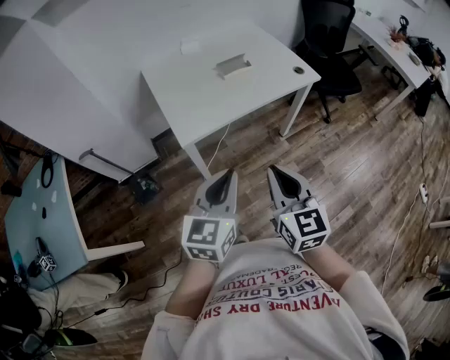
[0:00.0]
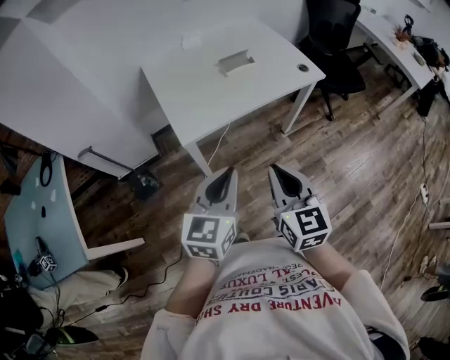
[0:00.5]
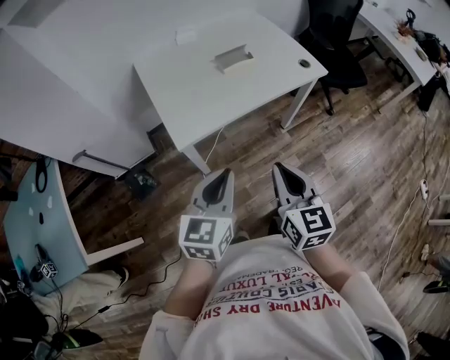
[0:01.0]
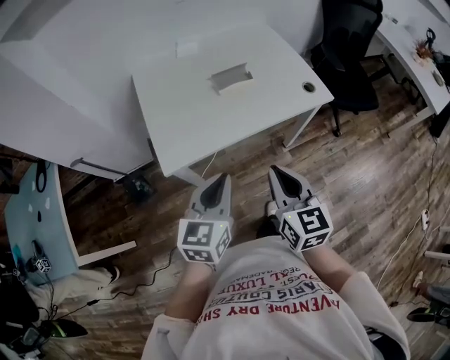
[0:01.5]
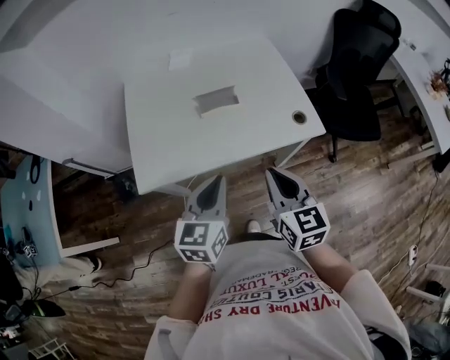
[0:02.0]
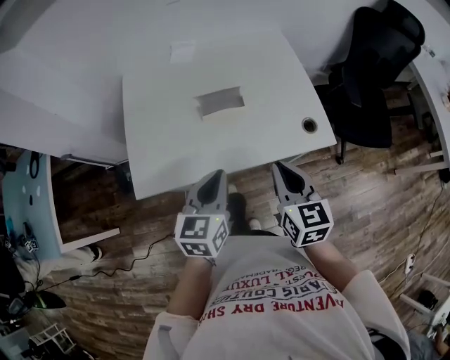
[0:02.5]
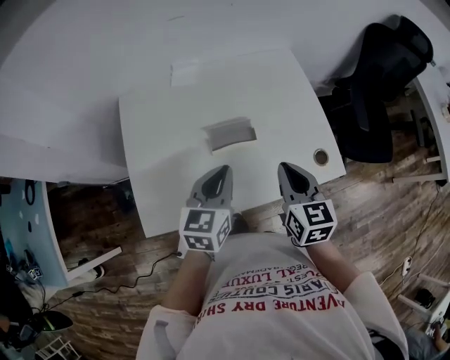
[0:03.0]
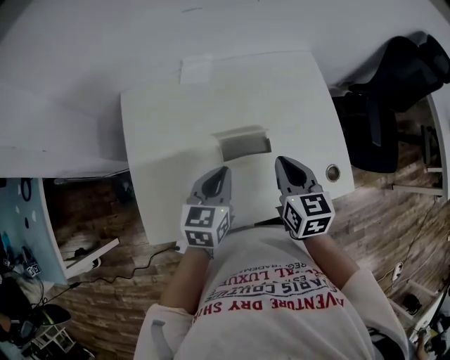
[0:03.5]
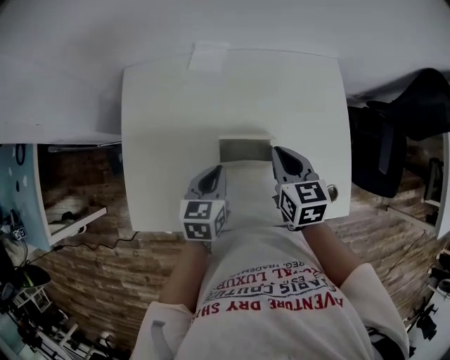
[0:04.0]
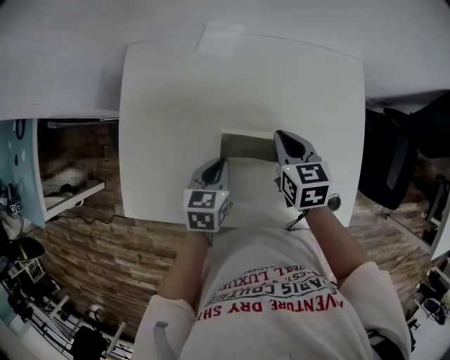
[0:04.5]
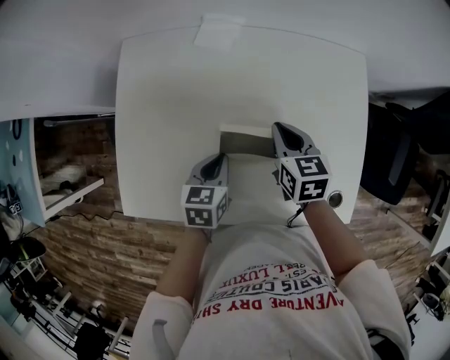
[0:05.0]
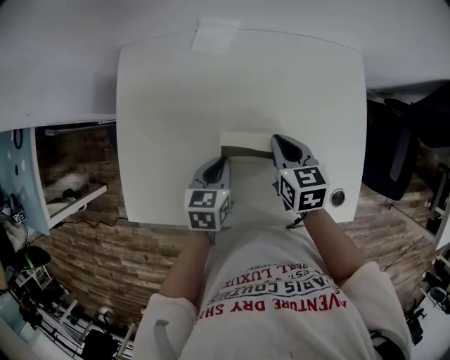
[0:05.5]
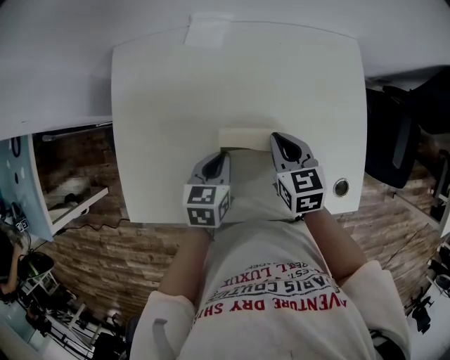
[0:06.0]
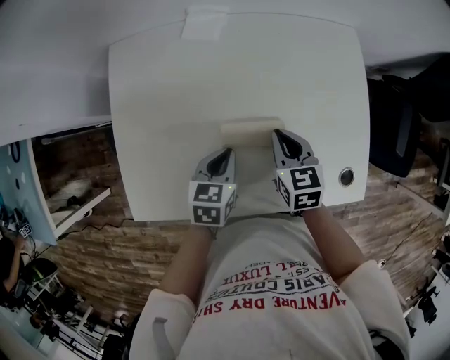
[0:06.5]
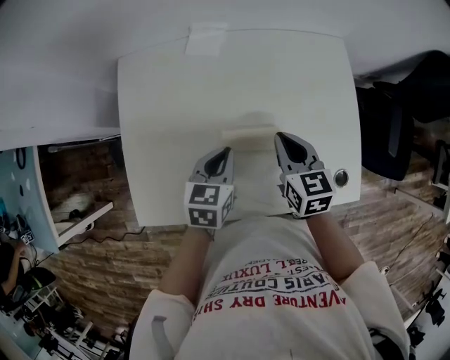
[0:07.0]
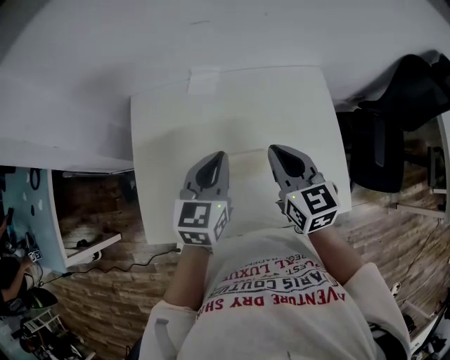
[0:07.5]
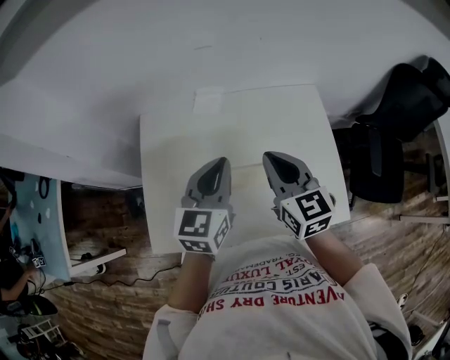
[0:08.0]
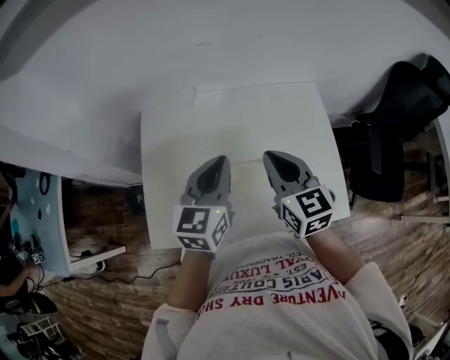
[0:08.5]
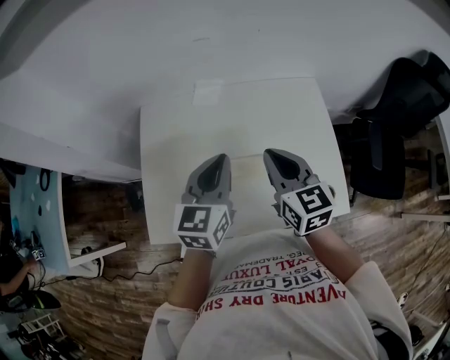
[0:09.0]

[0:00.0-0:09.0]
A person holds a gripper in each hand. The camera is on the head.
0:00.0 to 0:02.0: The two grippers go approximately 35 cm forward and to the right.
0:02.0 to 0:04.5: The right gripper travels forward by roughly 40 cm, and swivels approximately 30 degrees. The left gripper goes about 35 cm forward and downward, and rotates about 30 degrees.
0:04.5 to 0:07.0: The right gripper heads backward, covering roughly 5 cm.
0:07.0 to 0:09.0: The grippers both shift upward by roughly 20 cm. The left gripper changes its angle by approximately 30 degrees.

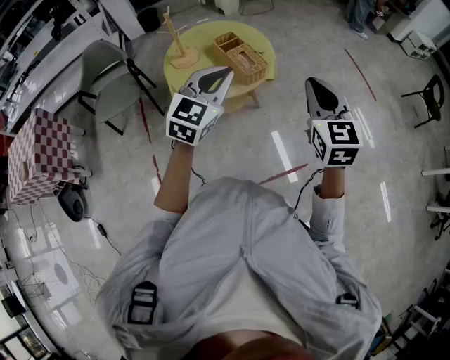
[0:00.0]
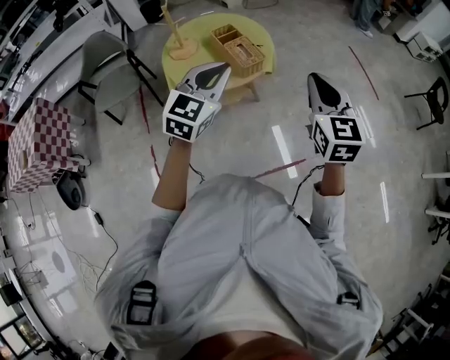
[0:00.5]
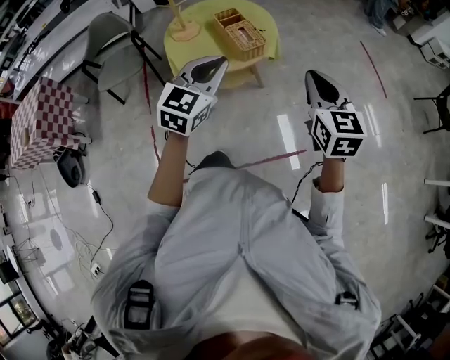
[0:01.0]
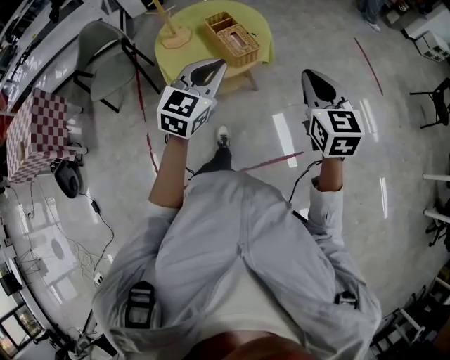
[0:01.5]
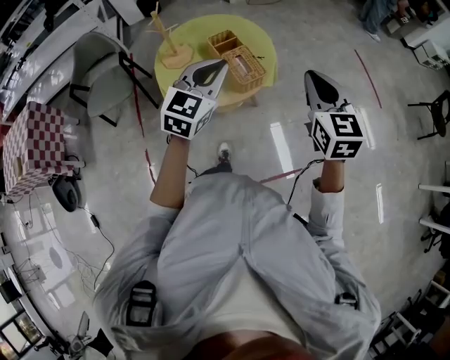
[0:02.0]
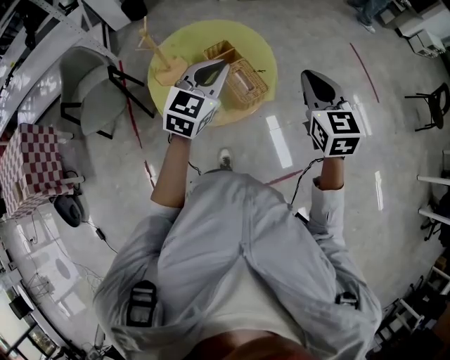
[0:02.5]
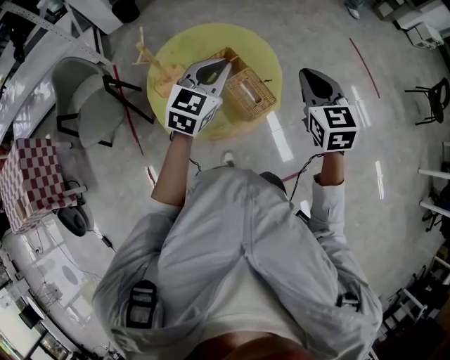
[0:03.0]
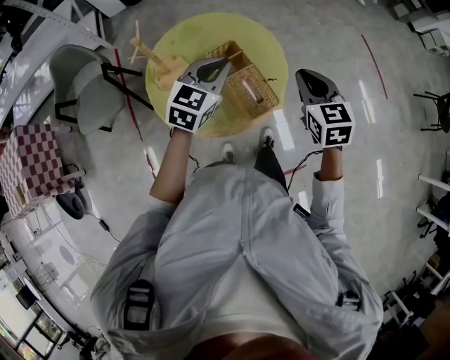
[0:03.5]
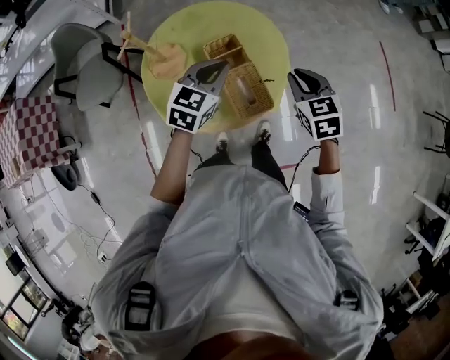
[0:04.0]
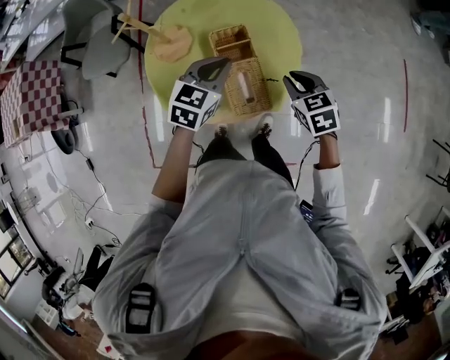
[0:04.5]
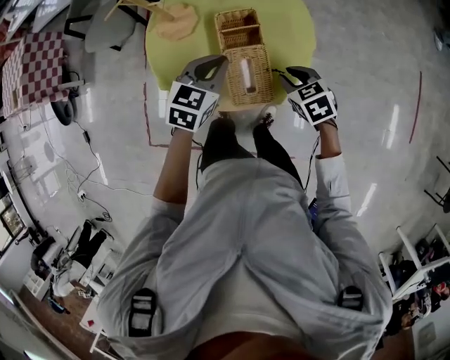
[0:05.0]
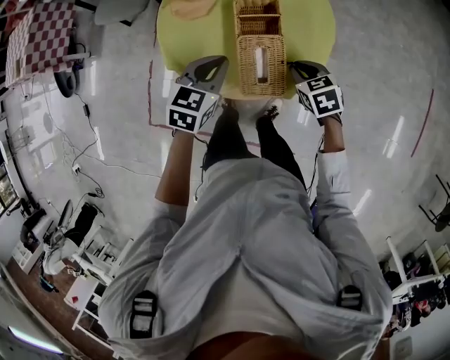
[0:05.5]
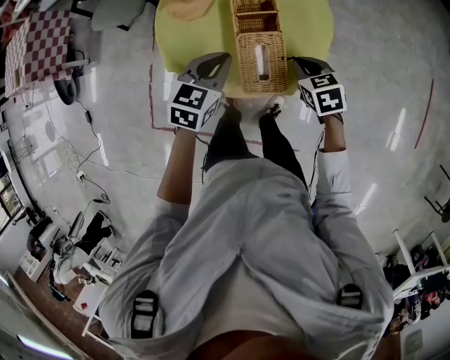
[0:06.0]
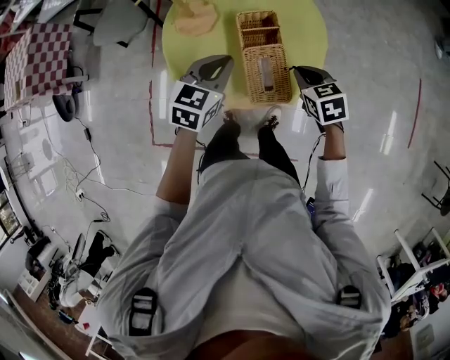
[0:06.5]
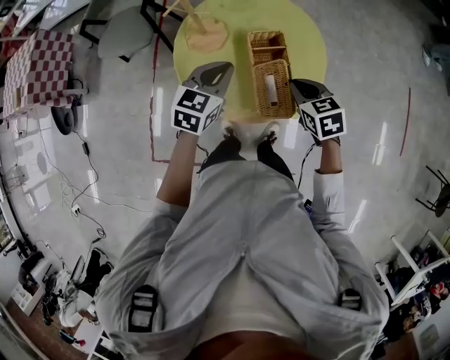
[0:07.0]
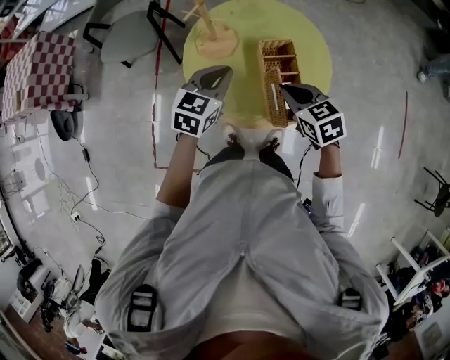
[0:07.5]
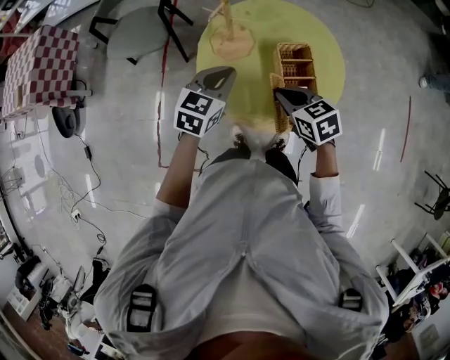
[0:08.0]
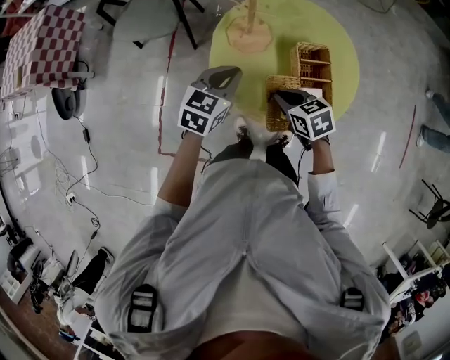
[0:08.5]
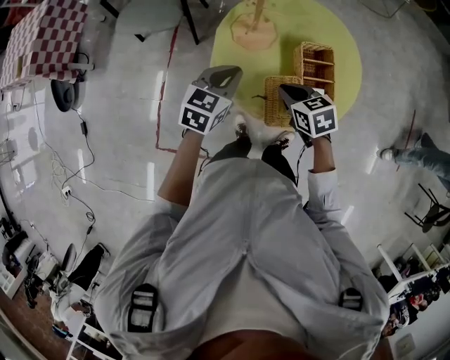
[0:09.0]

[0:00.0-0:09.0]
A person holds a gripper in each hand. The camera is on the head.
0:00.0 to 0:02.0: The grippers both shift forward by about 15 cm.
0:02.0 to 0:04.5: The right gripper moves some 40 cm, and tips its fingers downward by about 30 degrees; the left gripper shifts by roughly 35 cm, and turns by some 30 degrees.
0:04.5 to 0:07.0: The grippers both shift to the left by some 10 cm. The right gripper moves roughly 10 cm downward and comes back.
0:07.0 to 0:09.0: The two grippers go approximately 15 cm to the left.

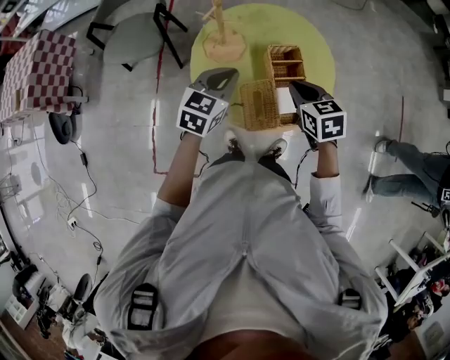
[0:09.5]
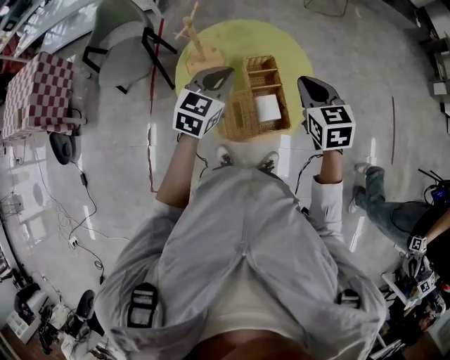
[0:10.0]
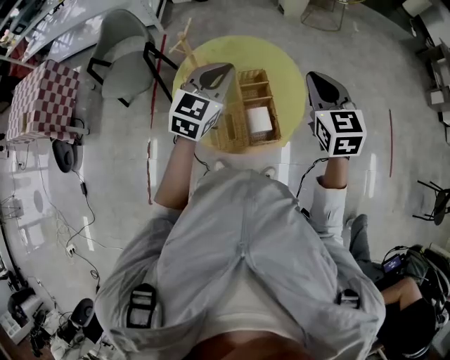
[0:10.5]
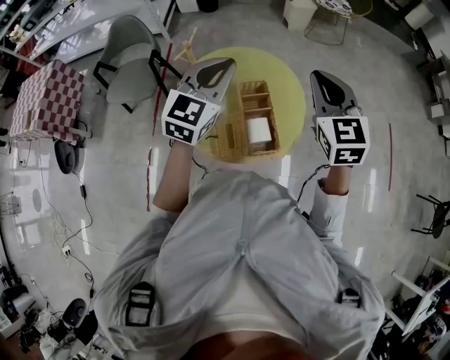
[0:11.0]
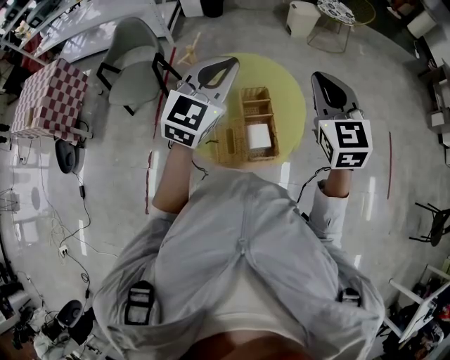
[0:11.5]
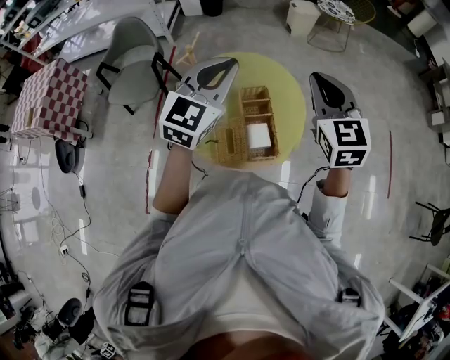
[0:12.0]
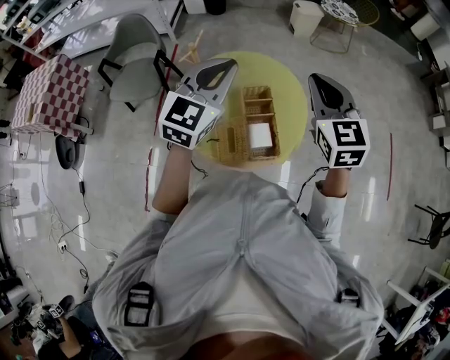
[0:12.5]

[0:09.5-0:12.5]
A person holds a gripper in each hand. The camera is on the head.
0:09.5 to 0:11.0: Both grippers travel together upward and to the right, approximately 25 cm. The left gripper changes its angle by about 30 degrees, while the right gripper swivels approximately 40 degrees.
0:11.0 to 0:12.5: There are only small adjustments of the grippers.

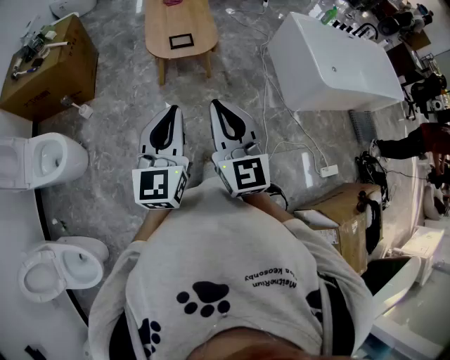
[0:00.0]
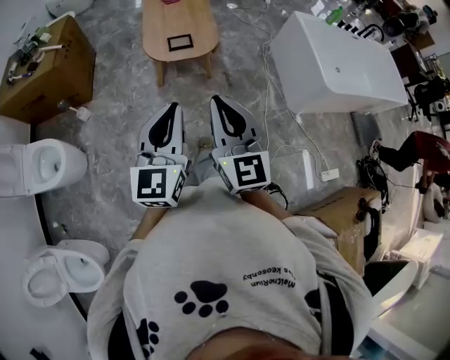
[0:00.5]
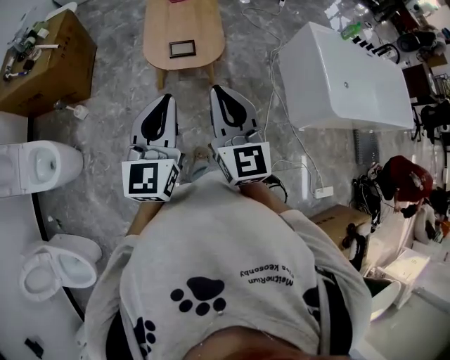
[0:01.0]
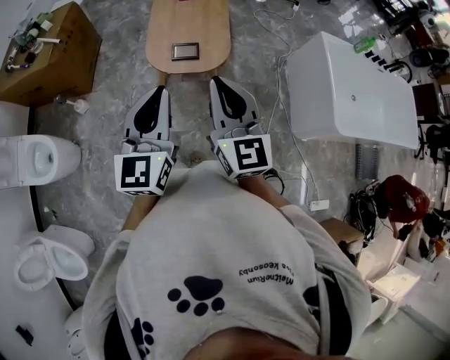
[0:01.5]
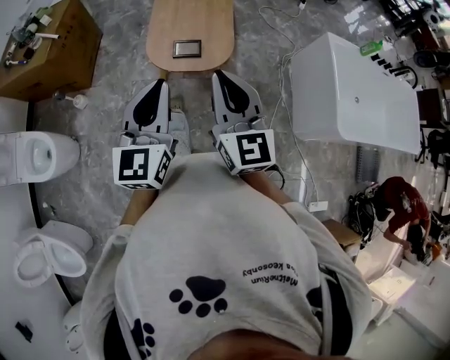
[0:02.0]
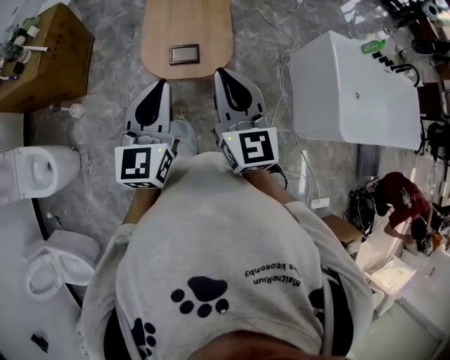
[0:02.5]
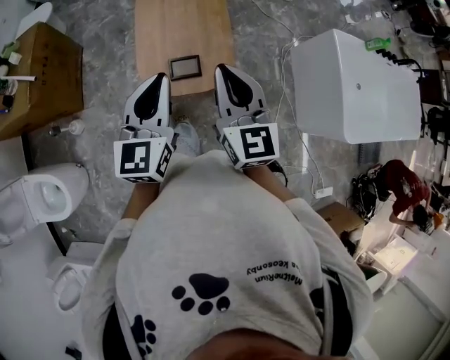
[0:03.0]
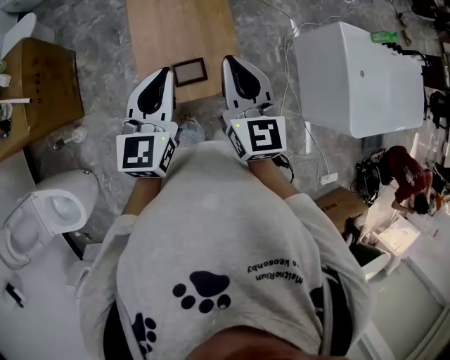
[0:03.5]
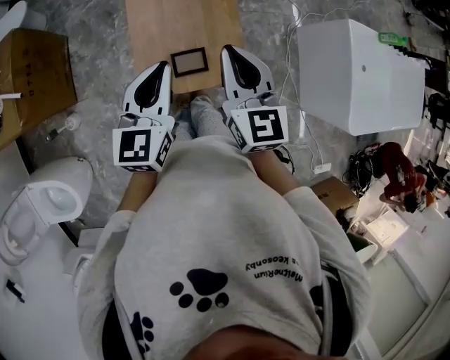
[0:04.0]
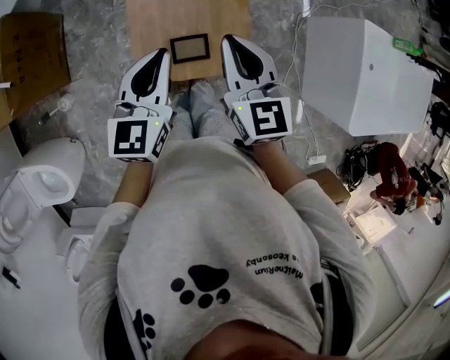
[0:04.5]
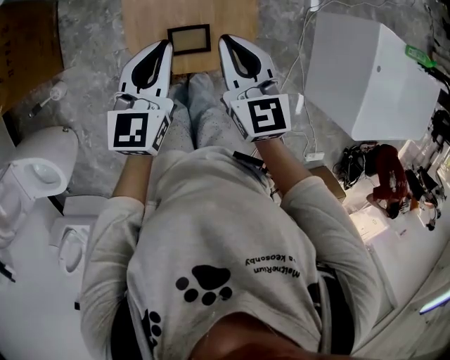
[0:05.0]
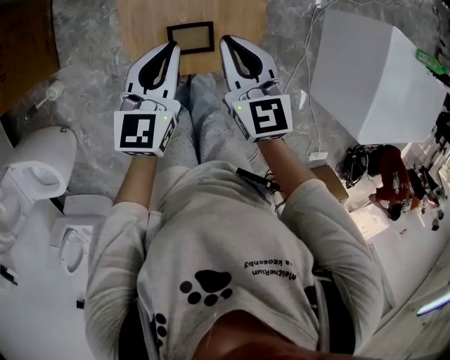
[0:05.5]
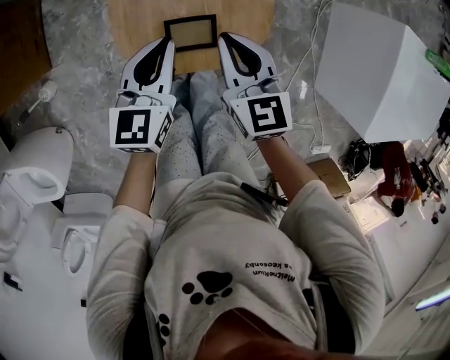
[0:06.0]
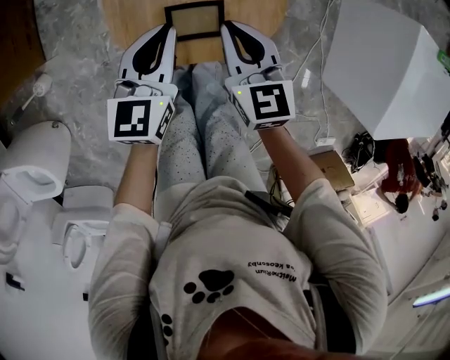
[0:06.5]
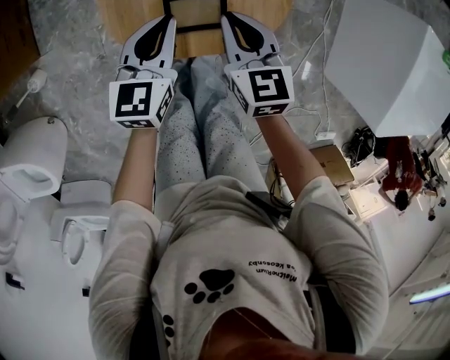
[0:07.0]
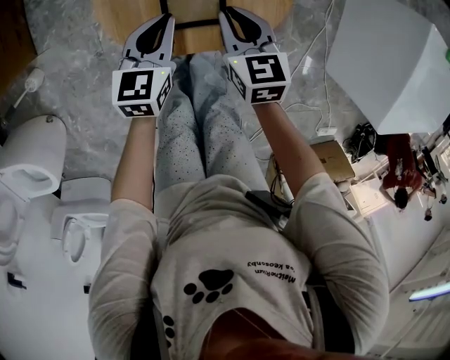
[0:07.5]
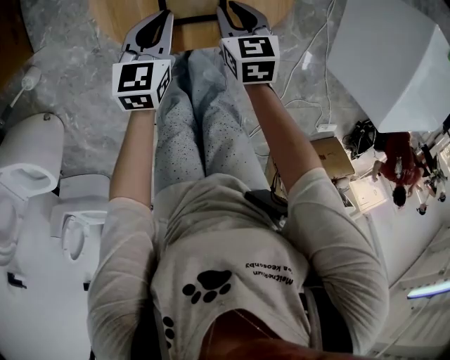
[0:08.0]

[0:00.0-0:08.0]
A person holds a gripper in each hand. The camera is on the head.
0:00.0 to 0:02.0: The grippers both shift forward by about 35 cm.
0:02.0 to 0:04.0: Both grippers travel together forward, some 35 cm. The right gripper changes its angle by about 20 degrees; the left gripper turns by some 20 degrees.
0:04.0 to 0:06.0: Both grippers move downward, some 25 cm.
0:06.0 to 0:08.0: The grippers both shift downward by about 20 cm. The right gripper changes its angle by about 20 degrees.
